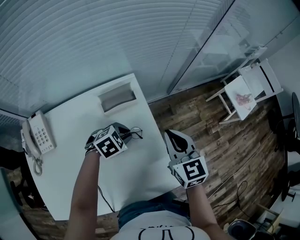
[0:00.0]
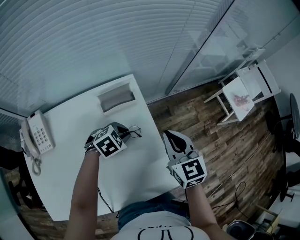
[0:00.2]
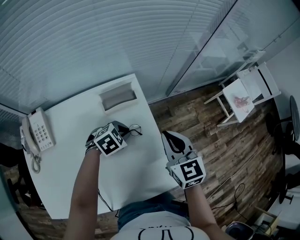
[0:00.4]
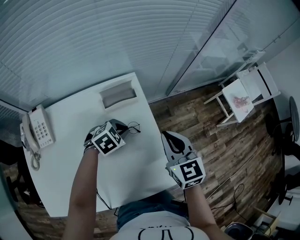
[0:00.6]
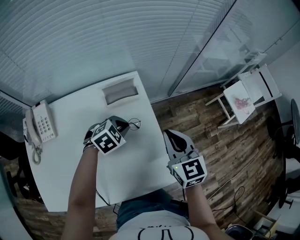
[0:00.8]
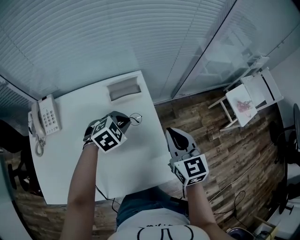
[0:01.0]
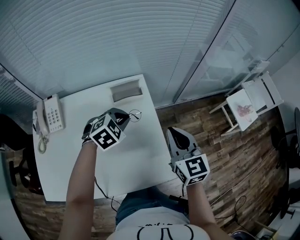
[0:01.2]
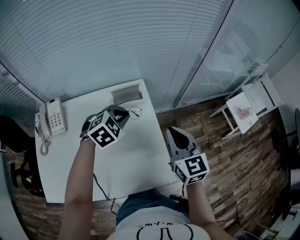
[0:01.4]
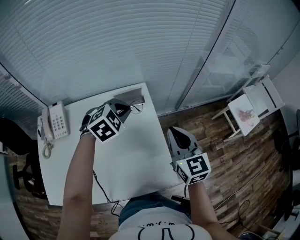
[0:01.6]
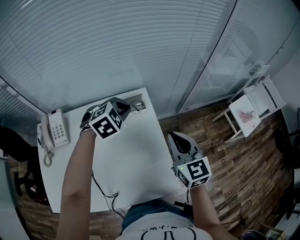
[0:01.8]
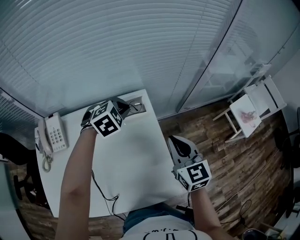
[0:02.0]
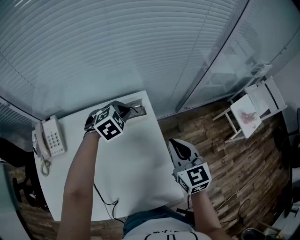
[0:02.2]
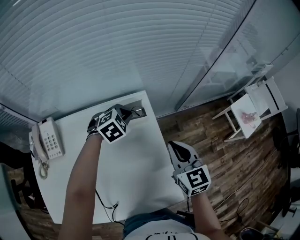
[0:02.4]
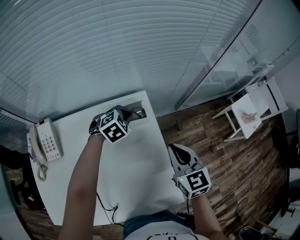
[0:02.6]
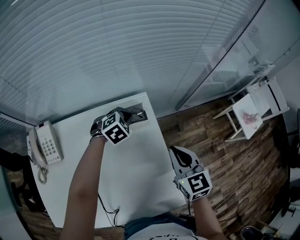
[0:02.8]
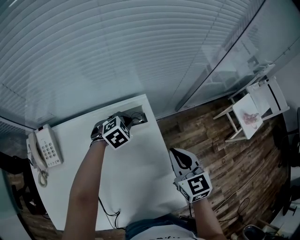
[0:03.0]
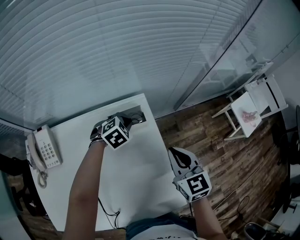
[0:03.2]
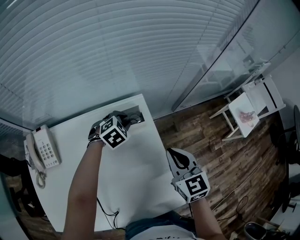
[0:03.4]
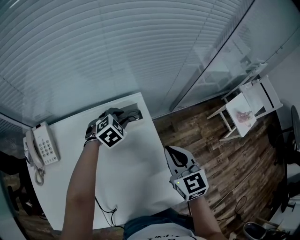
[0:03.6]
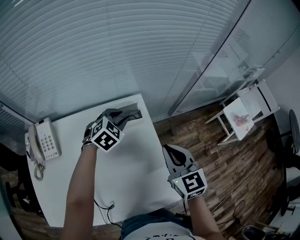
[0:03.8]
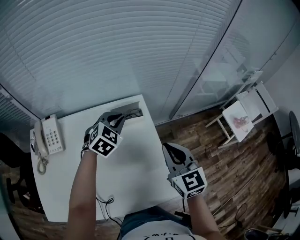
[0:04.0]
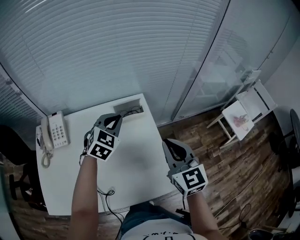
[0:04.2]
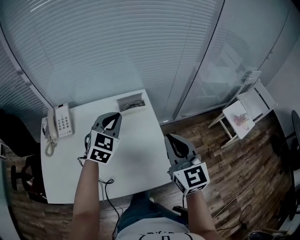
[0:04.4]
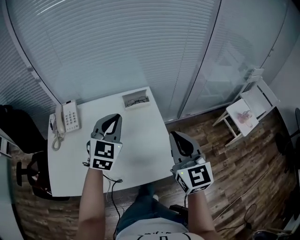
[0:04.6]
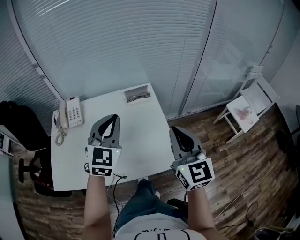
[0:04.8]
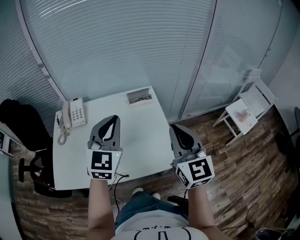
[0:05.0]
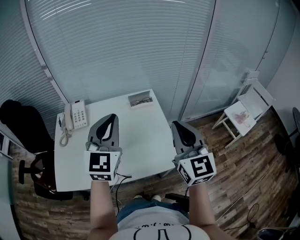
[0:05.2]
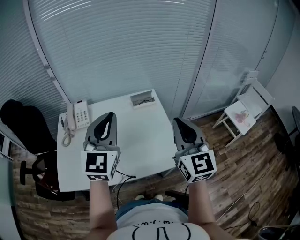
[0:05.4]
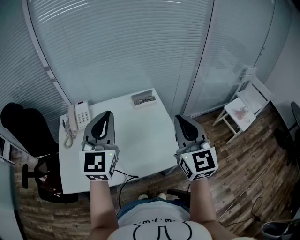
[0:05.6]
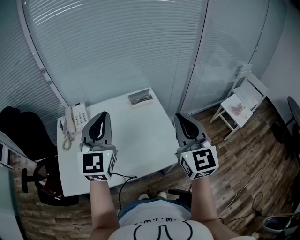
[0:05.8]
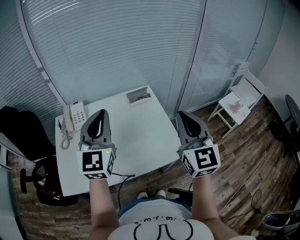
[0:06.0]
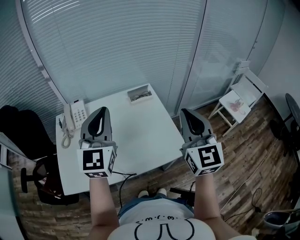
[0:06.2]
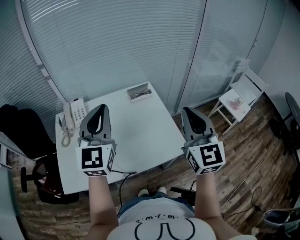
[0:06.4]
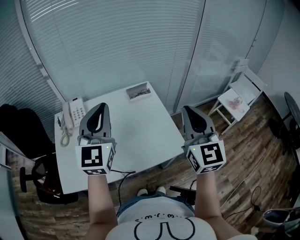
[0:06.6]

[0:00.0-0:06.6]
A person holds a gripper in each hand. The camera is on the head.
0:00.0 to 0:01.6: The left gripper heads upward, covering roughly 15 cm, and rotates about 30 degrees. Meanwhile the right gripper is displaced upward by some 5 cm.
0:01.6 to 0:03.2: The right gripper moves downward and forward, roughly 10 cm, while the left gripper goes approximately 20 cm downward and forward.
0:03.2 to 0:05.0: The two grippers go roughly 40 cm backward and upward. The right gripper changes its angle by about 30 degrees; the left gripper angles its fingers upward, by about 50 degrees, and opens, then closes again.
0:05.0 to 0:06.6: The left gripper goes some 10 cm to the left and upward. Meanwhile the right gripper heads upward, covering roughly 5 cm.

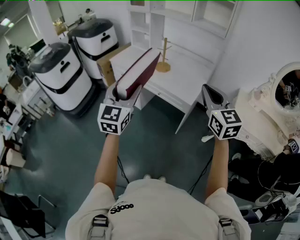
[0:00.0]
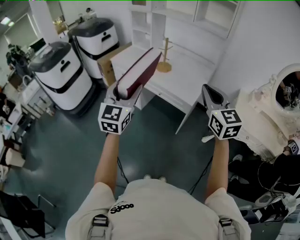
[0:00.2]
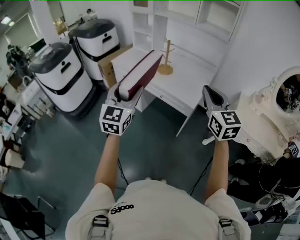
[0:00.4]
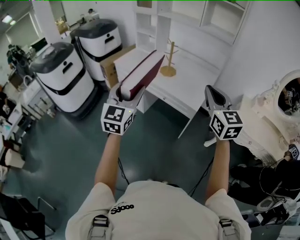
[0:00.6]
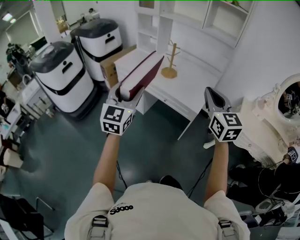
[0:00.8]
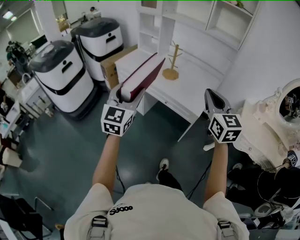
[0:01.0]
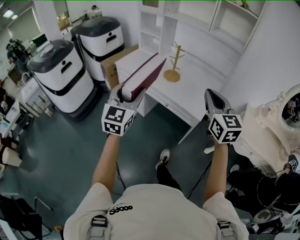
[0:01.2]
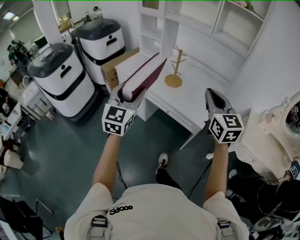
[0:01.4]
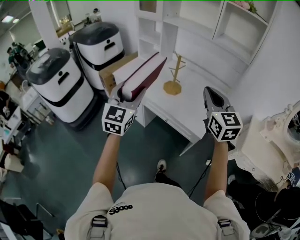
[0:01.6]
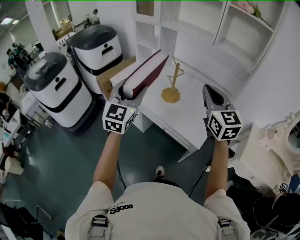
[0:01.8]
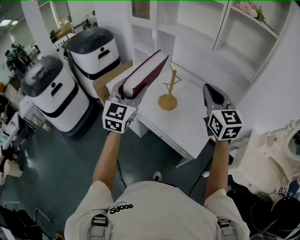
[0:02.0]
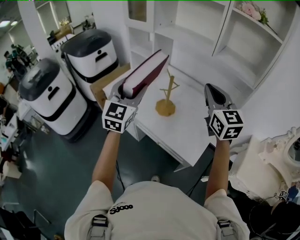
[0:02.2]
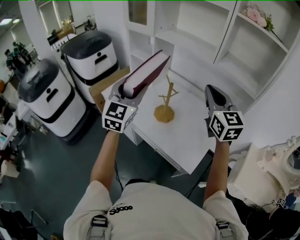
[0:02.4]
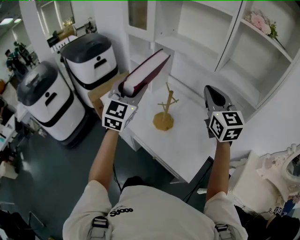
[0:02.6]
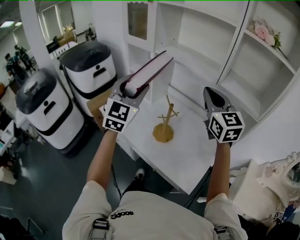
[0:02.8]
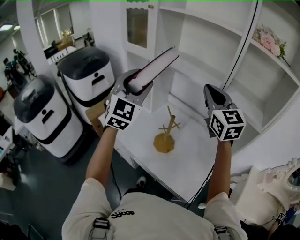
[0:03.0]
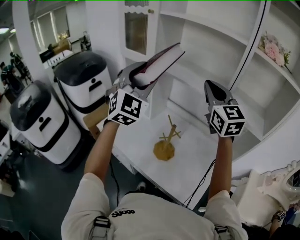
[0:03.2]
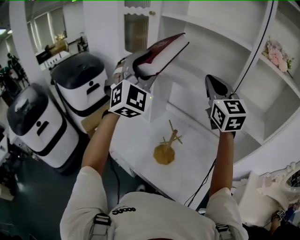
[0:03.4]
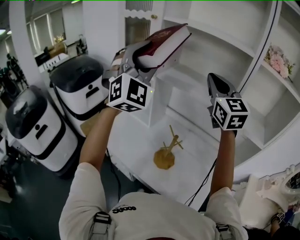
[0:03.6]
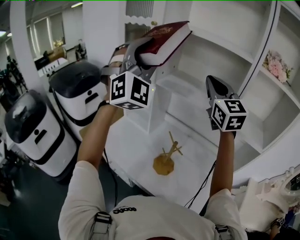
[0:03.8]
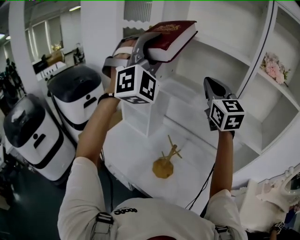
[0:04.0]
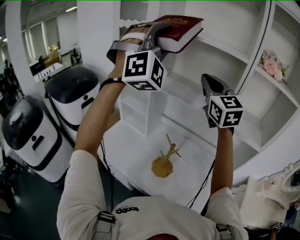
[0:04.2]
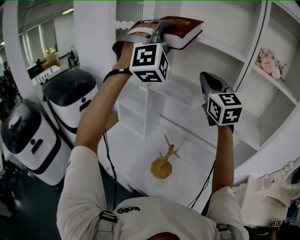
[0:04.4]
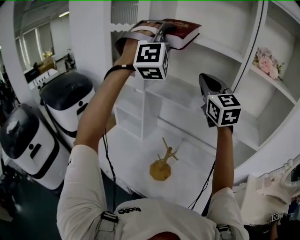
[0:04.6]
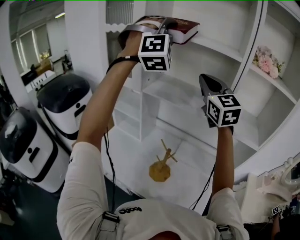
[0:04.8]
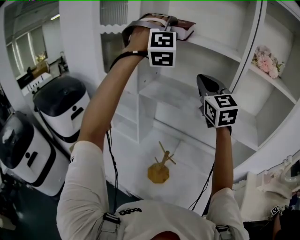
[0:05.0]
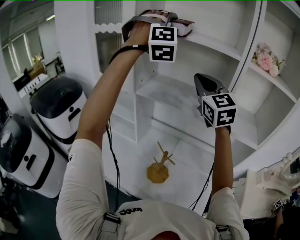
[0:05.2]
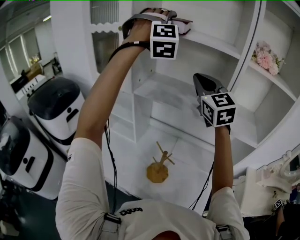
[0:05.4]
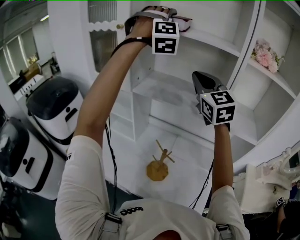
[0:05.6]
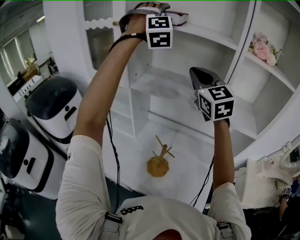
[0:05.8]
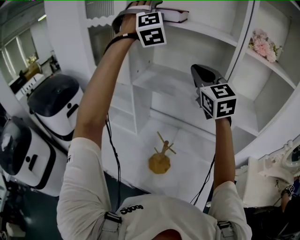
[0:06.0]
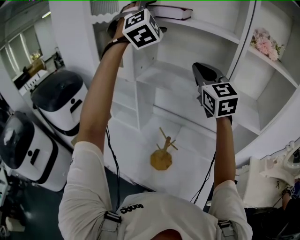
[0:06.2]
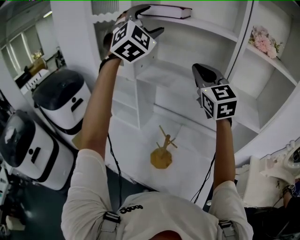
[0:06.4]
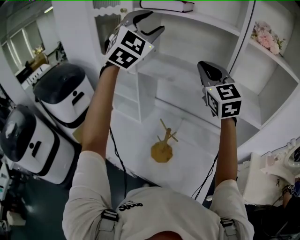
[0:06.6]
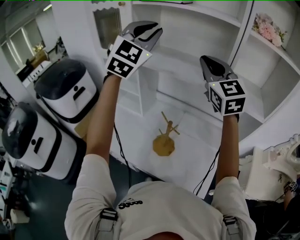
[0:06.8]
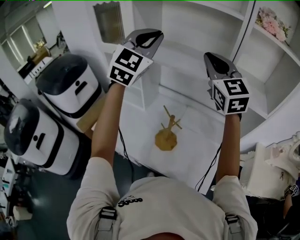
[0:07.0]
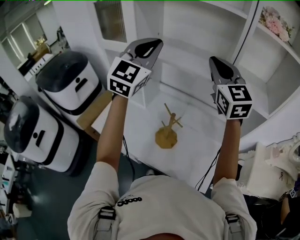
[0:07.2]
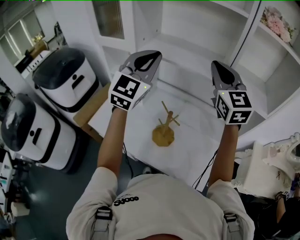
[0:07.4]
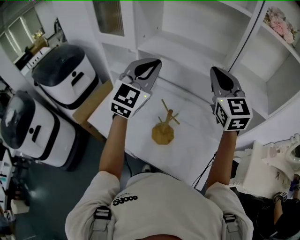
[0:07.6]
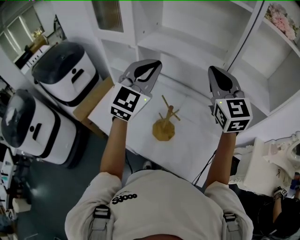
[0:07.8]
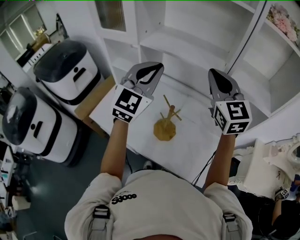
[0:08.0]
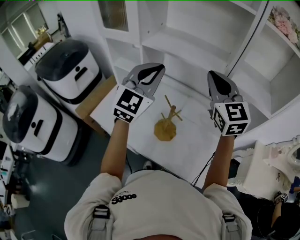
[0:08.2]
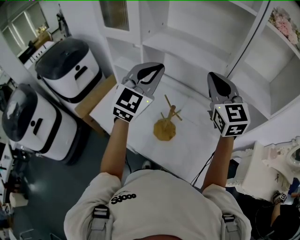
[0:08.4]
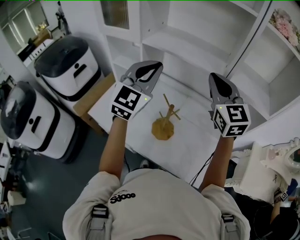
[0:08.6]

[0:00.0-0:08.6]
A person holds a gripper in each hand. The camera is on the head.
0:00.0 to 0:01.4: Both grippers move forward, roughly 20 cm.
0:01.4 to 0:02.8: Both grippers travel together forward, some 40 cm.
0:02.8 to 0:04.4: The right gripper shifts about 20 cm forward and upward. The left gripper shifts approximately 30 cm upward and forward, and rolls clockwise, seen from behind, by about 60 degrees.
0:04.4 to 0:05.8: The right gripper shifts by some 5 cm, while the left gripper moves forward and to the right, some 20 cm, and opens up.
0:05.8 to 0:07.2: The left gripper is displaced backward and downward by about 25 cm, rotates around the line of its fingers by about 60 degrees, counterclockwise from behind, and closes its fingers. The right gripper is displaced backward and downward by roughly 10 cm.
0:07.2 to 0:08.6: Both grippers move downward, some 10 cm.

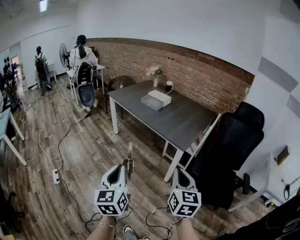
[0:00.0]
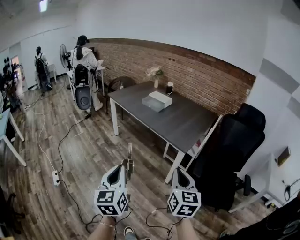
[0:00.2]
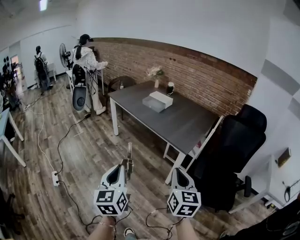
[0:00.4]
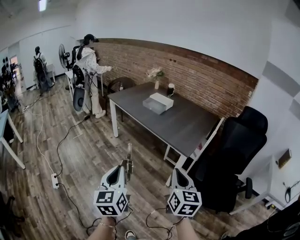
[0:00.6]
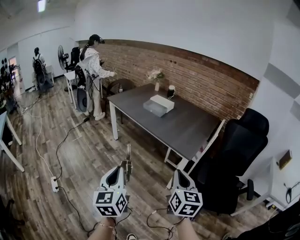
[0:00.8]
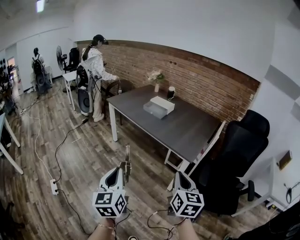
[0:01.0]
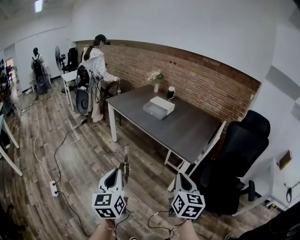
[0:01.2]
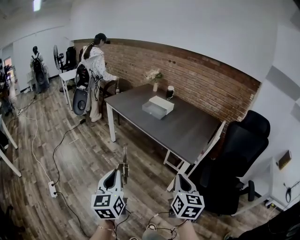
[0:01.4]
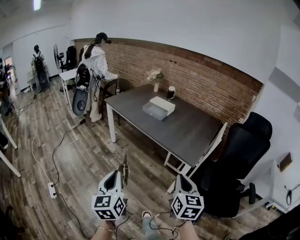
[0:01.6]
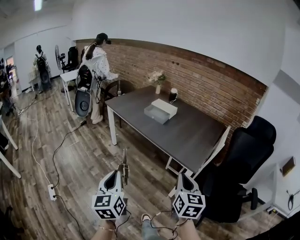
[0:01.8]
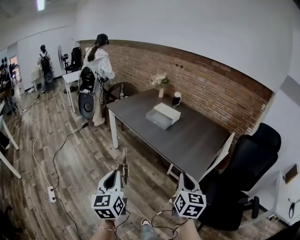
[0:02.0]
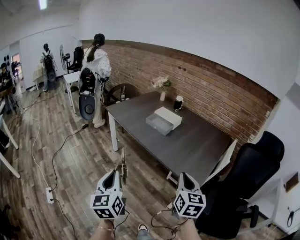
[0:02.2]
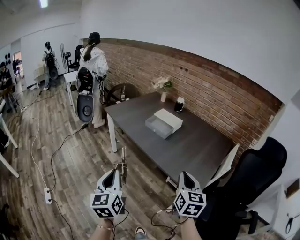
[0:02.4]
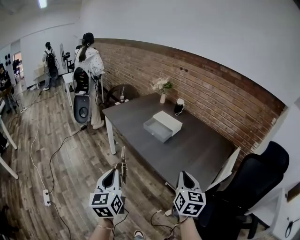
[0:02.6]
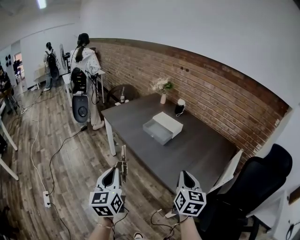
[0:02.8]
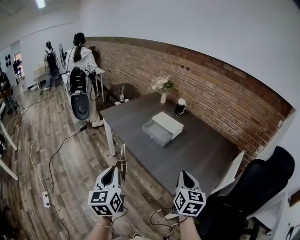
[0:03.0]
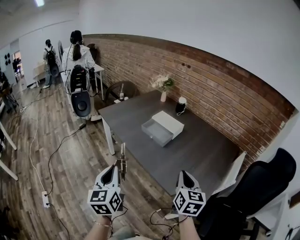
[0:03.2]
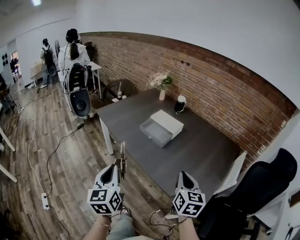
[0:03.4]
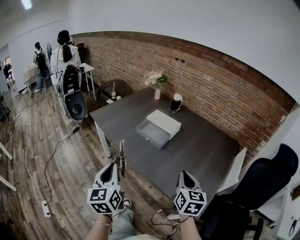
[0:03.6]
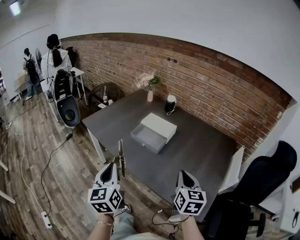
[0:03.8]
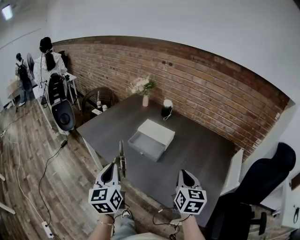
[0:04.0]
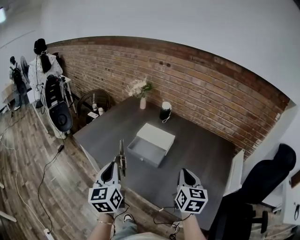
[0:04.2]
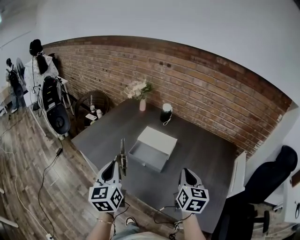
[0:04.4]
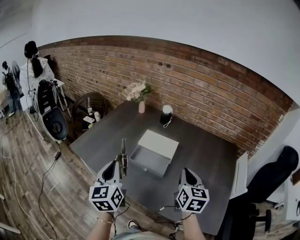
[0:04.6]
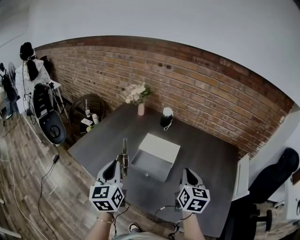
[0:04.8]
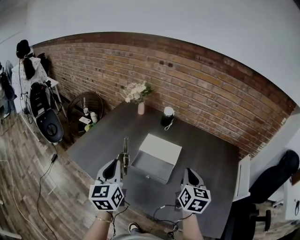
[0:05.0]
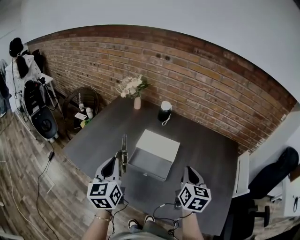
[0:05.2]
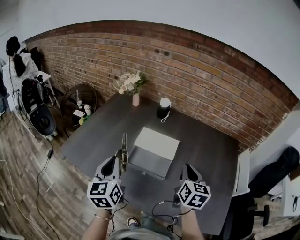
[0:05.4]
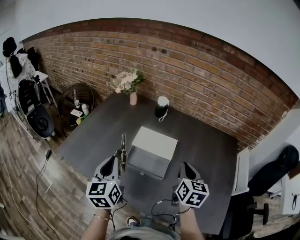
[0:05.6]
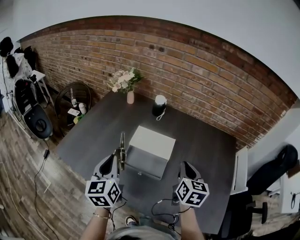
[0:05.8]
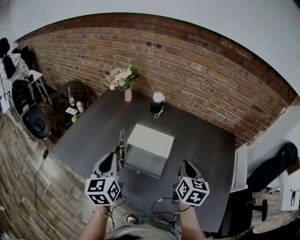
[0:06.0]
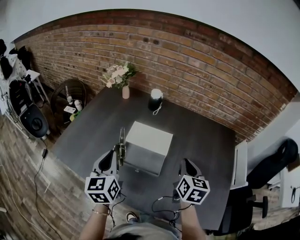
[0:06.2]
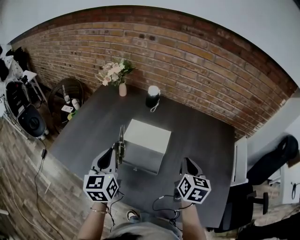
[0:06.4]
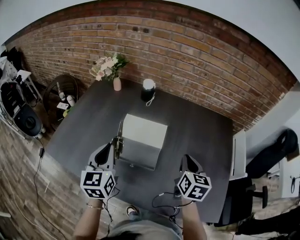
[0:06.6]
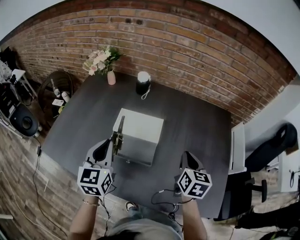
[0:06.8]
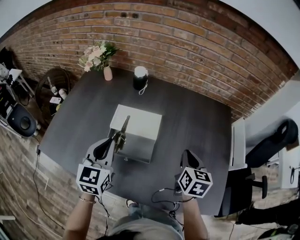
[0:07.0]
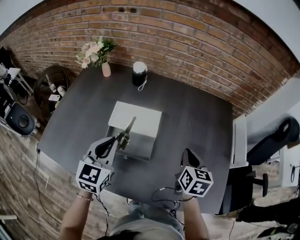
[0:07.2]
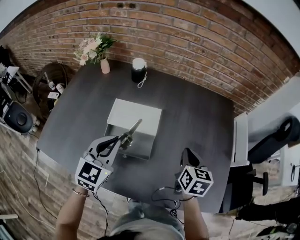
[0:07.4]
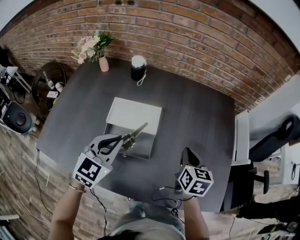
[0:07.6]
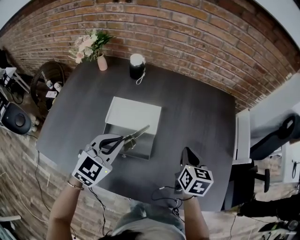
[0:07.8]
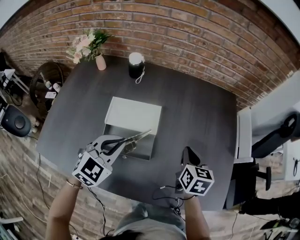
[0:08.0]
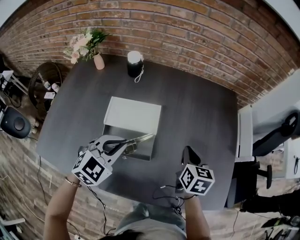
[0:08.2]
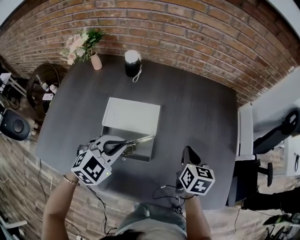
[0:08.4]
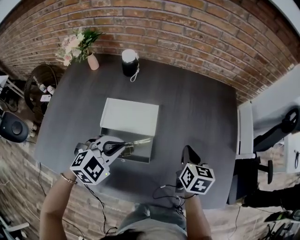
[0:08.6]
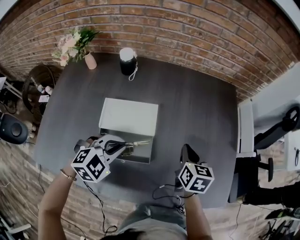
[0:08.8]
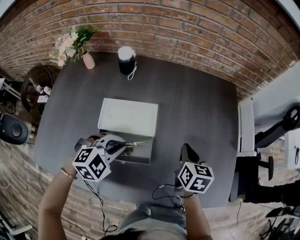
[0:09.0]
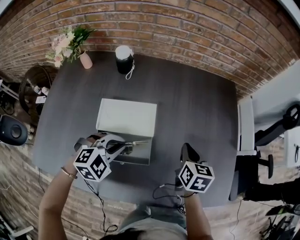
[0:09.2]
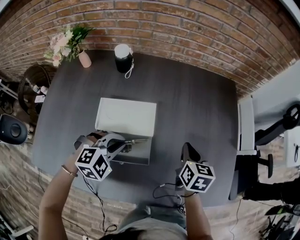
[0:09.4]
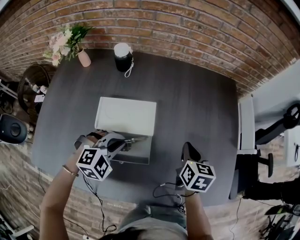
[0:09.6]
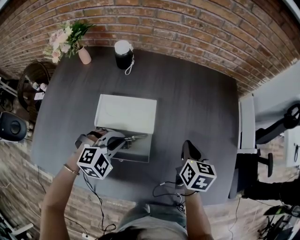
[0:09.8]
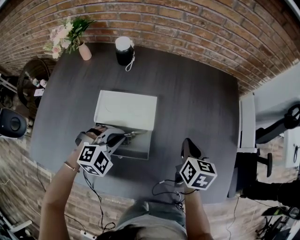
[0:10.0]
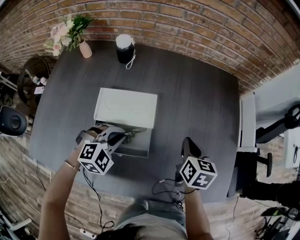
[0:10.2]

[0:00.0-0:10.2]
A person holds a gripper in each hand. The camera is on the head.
0:00.0 to 0:01.4: The grippers both shift forward and to the left by about 15 cm.
0:01.4 to 0:03.0: The grippers both shift forward by roughly 35 cm.
0:03.0 to 0:04.4: Both grippers move forward, about 30 cm.
0:04.4 to 0:05.8: Both grippers travel together forward, roughly 15 cm.
0:05.8 to 0:07.2: The left gripper heads to the right and forward, covering some 10 cm, and rotates about 30 degrees. Meanwhile the right gripper shifts roughly 10 cm to the right and downward.
0:07.2 to 0:08.8: The right gripper shifts some 5 cm downward, while the left gripper travels downward by roughly 10 cm, and swivels some 60 degrees.
0:08.8 to 0:10.2: The left gripper shifts some 5 cm downward.
